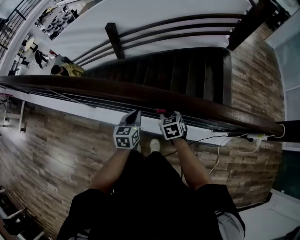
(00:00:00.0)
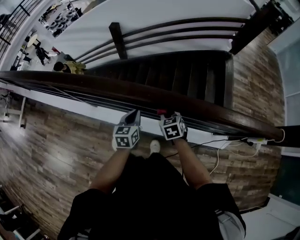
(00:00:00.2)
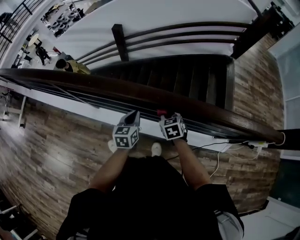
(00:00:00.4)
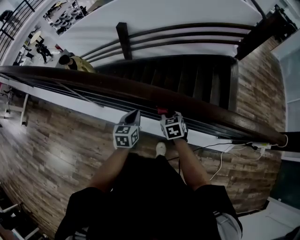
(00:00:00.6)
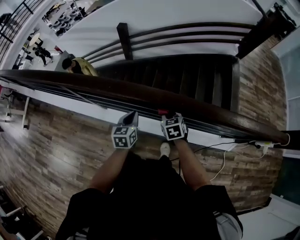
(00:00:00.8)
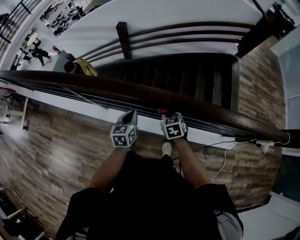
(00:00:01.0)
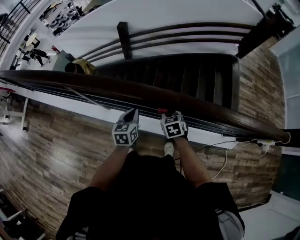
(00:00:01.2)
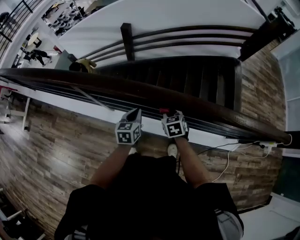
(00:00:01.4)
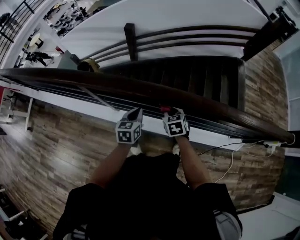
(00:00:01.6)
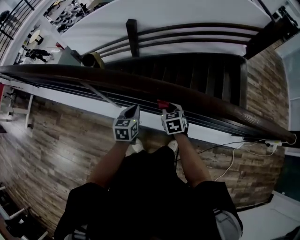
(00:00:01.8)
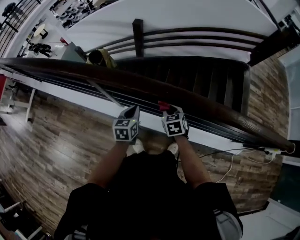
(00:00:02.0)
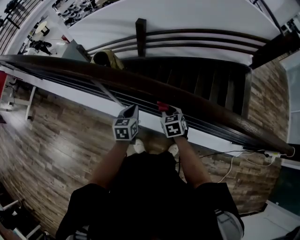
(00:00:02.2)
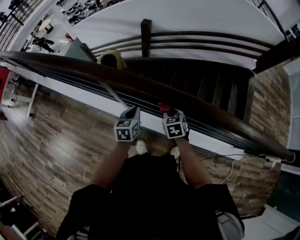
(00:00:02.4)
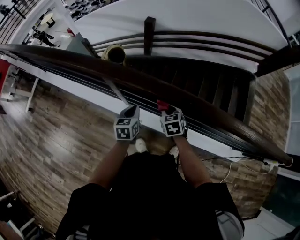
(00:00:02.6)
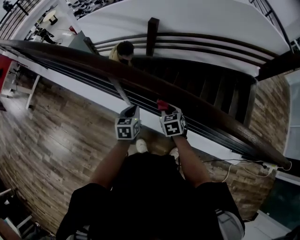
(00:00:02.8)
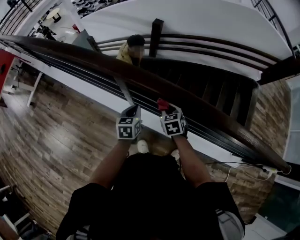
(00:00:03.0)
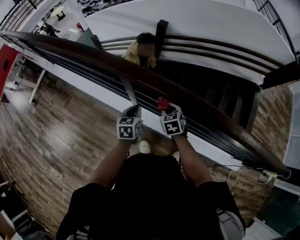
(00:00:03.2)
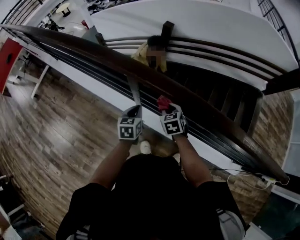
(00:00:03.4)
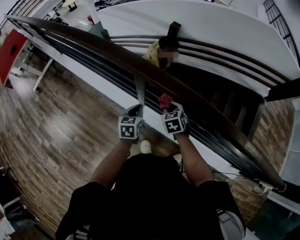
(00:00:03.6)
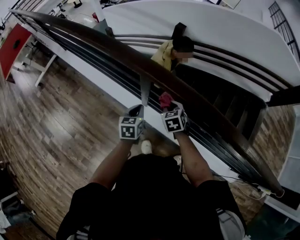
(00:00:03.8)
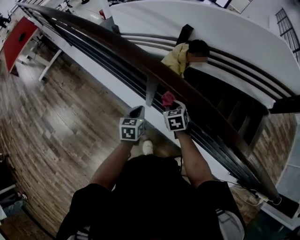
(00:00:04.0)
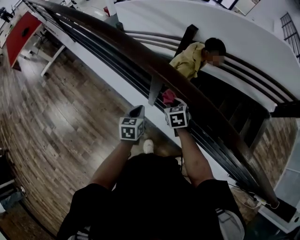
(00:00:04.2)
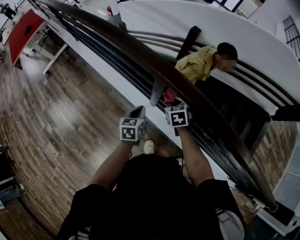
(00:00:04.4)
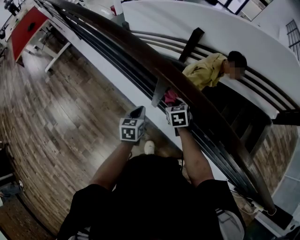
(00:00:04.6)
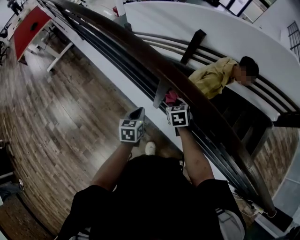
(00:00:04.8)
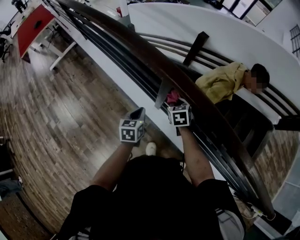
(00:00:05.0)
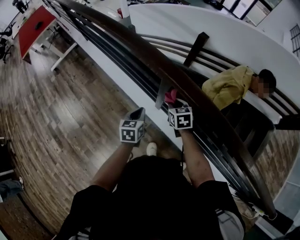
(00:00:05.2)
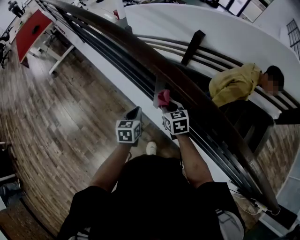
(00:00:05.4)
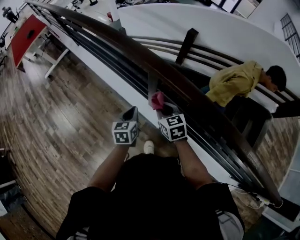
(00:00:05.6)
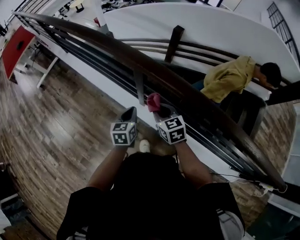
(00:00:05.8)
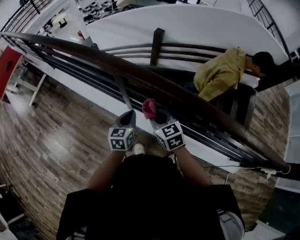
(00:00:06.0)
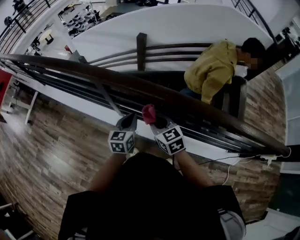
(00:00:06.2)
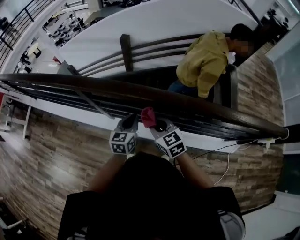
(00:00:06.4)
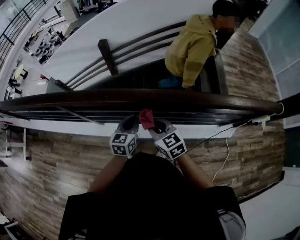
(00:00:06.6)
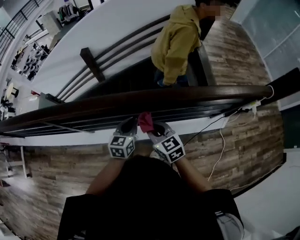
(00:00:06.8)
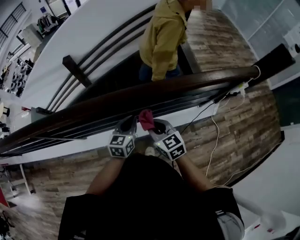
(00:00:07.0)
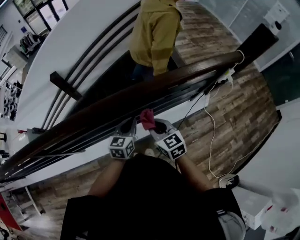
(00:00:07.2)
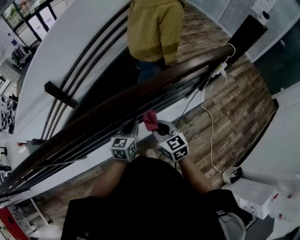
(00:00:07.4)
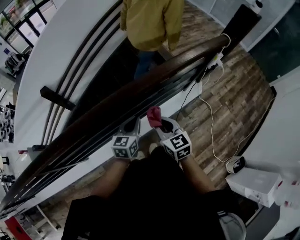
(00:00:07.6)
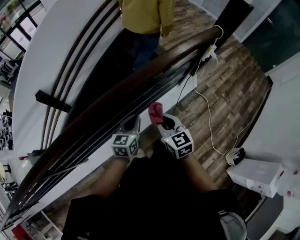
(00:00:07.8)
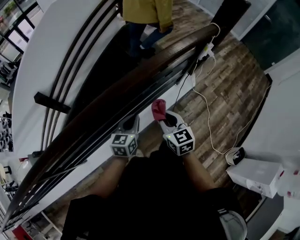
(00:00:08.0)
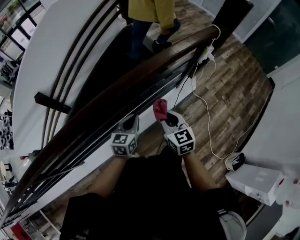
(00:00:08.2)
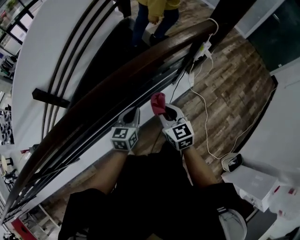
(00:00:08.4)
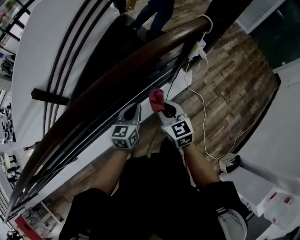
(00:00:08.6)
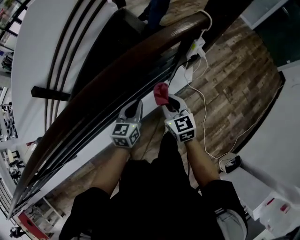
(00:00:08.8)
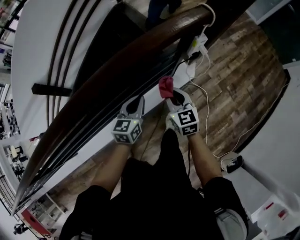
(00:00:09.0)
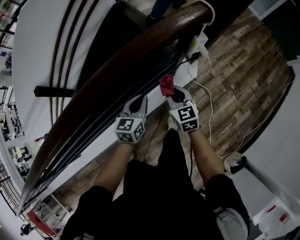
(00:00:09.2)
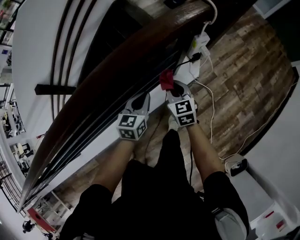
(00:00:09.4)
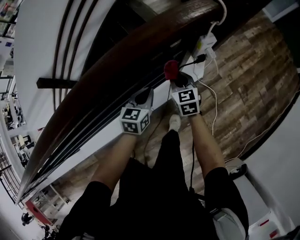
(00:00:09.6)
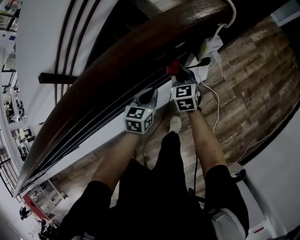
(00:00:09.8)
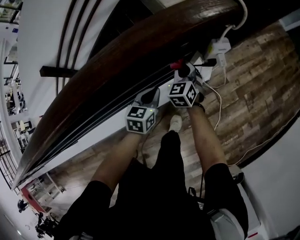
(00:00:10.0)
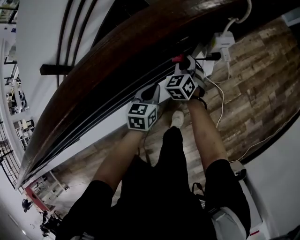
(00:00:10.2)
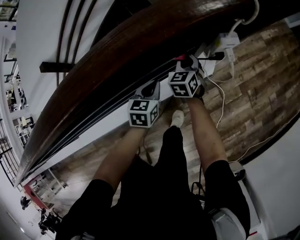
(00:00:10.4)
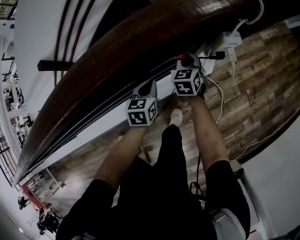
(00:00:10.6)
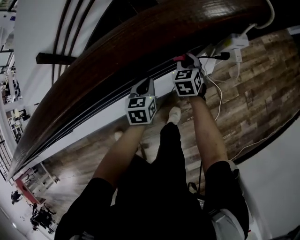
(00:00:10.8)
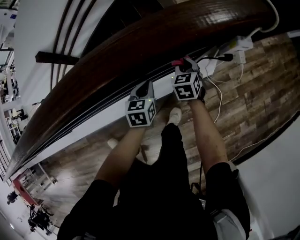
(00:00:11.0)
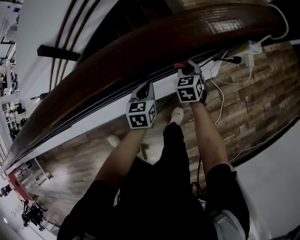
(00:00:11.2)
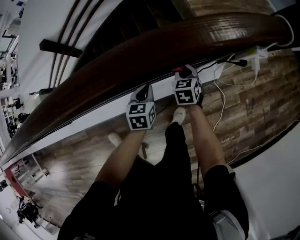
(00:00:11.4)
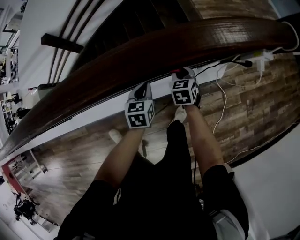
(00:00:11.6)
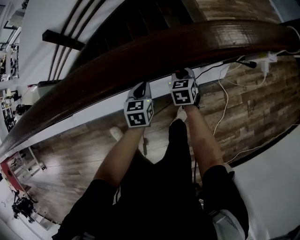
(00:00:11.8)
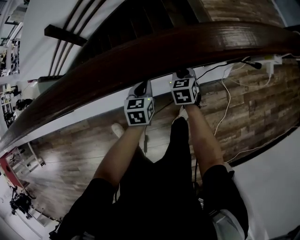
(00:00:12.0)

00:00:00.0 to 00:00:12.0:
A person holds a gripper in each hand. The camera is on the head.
00:00:00.0 to 00:00:01.6: Both grippers travel together to the left, about 20 cm.
00:00:01.6 to 00:00:03.0: Both grippers travel together to the left, roughly 15 cm.
00:00:03.0 to 00:00:04.4: The right gripper is displaced to the left and forward by some 15 cm; the left gripper moves to the left, some 10 cm.
00:00:04.4 to 00:00:06.0: The left gripper moves to the right, upward and backward, about 10 cm; the right gripper shifts roughly 15 cm backward and upward, and turns by approximately 20 degrees.
00:00:06.0 to 00:00:07.6: The two grippers travel together, roughly 50 cm. The right gripper changes its angle by about 60 degrees, while the left gripper changes its angle by about 60 degrees.
00:00:07.6 to 00:00:09.0: Both grippers move to the right and forward, some 30 cm.
00:00:09.0 to 00:00:10.4: The right gripper is displaced forward and downward by approximately 25 cm, and rotates approximately 20 degrees, while the left gripper travels downward and forward by some 15 cm.
00:00:10.4 to 00:00:12.0: Both grippers move to the left and backward, about 25 cm. The left gripper swivels some 20 degrees. Meanwhile the right gripper rotates about 20 degrees.

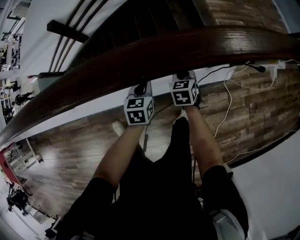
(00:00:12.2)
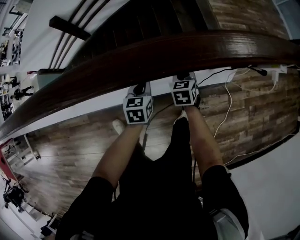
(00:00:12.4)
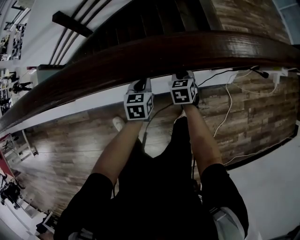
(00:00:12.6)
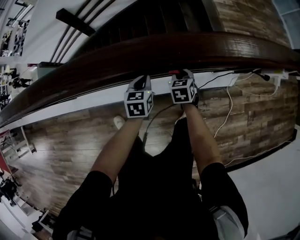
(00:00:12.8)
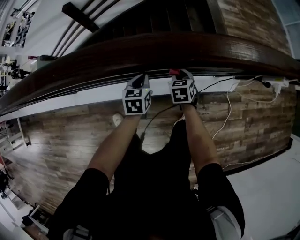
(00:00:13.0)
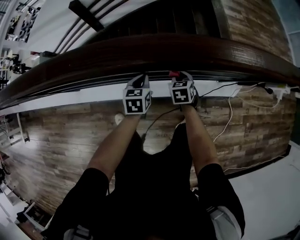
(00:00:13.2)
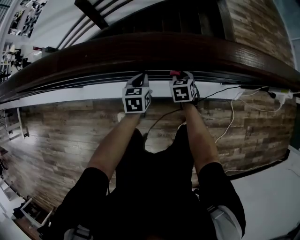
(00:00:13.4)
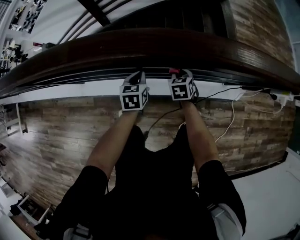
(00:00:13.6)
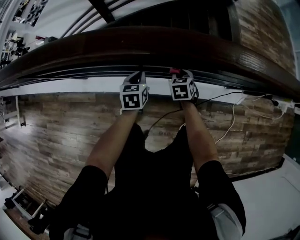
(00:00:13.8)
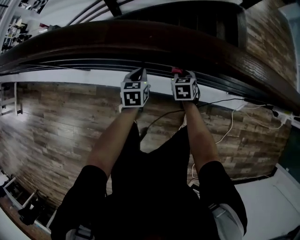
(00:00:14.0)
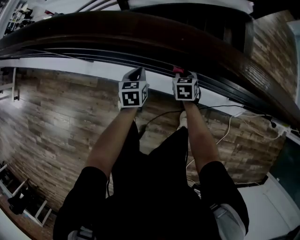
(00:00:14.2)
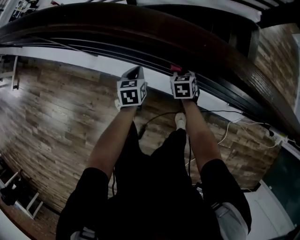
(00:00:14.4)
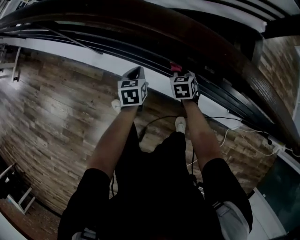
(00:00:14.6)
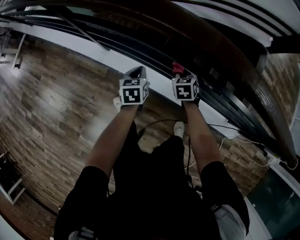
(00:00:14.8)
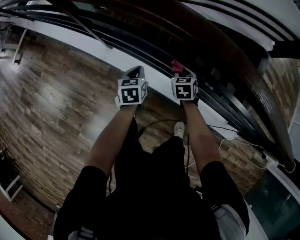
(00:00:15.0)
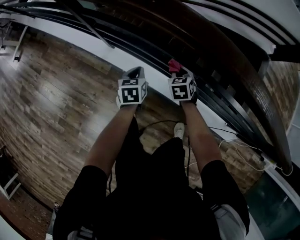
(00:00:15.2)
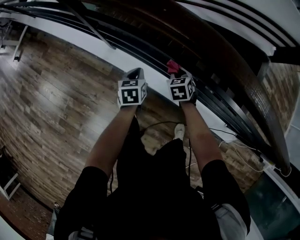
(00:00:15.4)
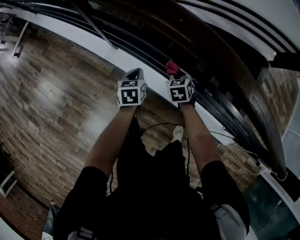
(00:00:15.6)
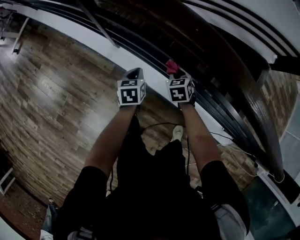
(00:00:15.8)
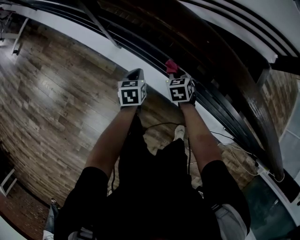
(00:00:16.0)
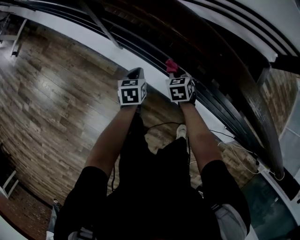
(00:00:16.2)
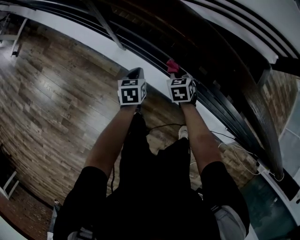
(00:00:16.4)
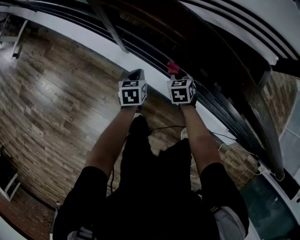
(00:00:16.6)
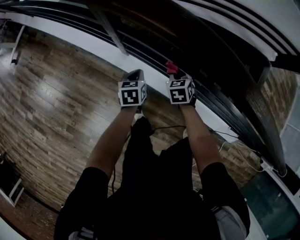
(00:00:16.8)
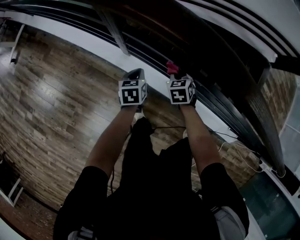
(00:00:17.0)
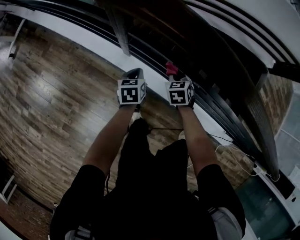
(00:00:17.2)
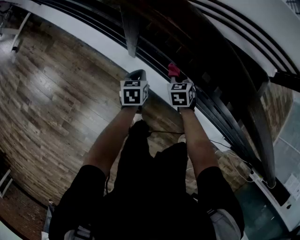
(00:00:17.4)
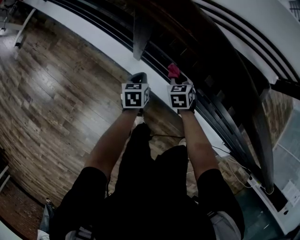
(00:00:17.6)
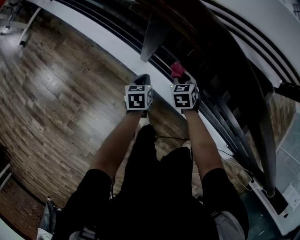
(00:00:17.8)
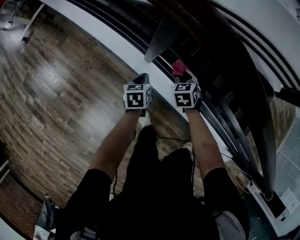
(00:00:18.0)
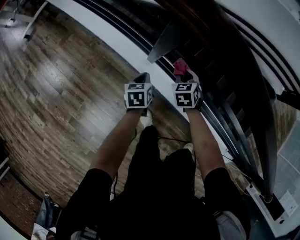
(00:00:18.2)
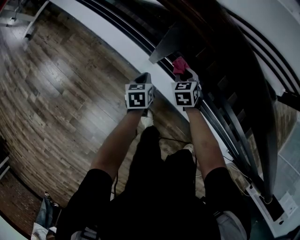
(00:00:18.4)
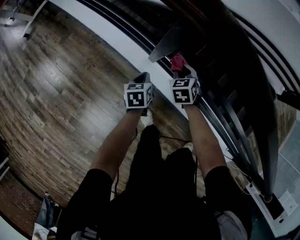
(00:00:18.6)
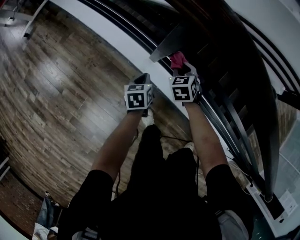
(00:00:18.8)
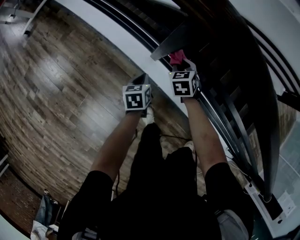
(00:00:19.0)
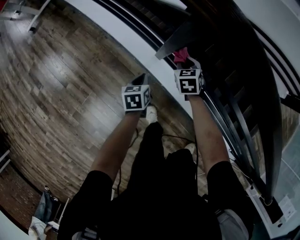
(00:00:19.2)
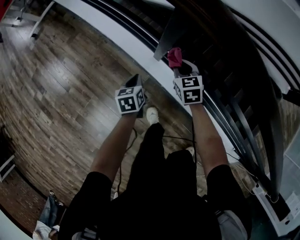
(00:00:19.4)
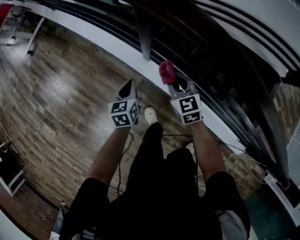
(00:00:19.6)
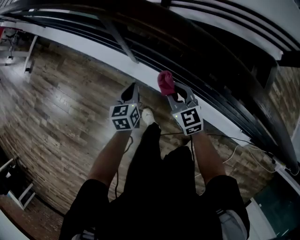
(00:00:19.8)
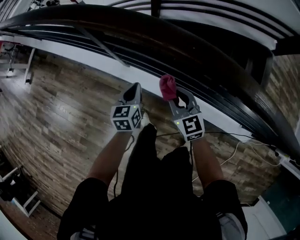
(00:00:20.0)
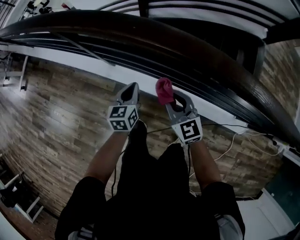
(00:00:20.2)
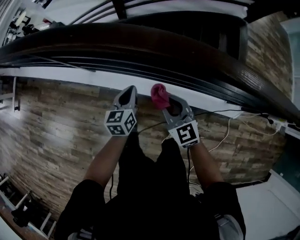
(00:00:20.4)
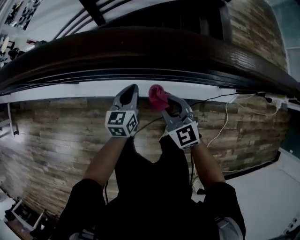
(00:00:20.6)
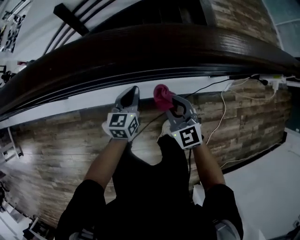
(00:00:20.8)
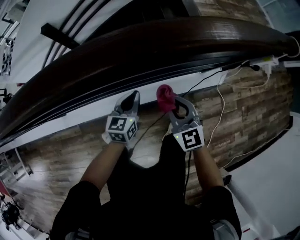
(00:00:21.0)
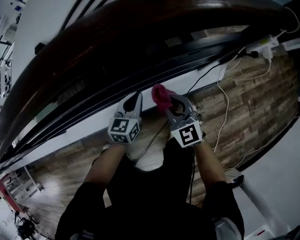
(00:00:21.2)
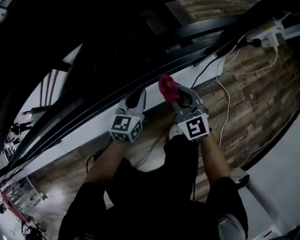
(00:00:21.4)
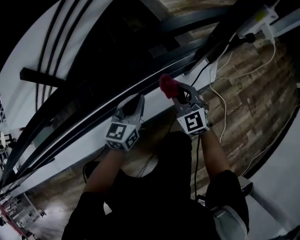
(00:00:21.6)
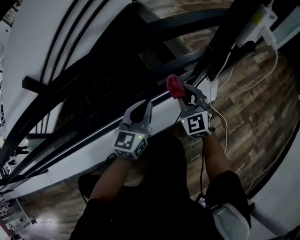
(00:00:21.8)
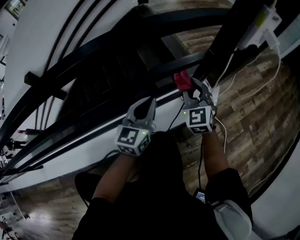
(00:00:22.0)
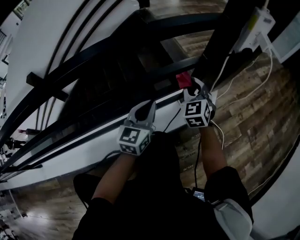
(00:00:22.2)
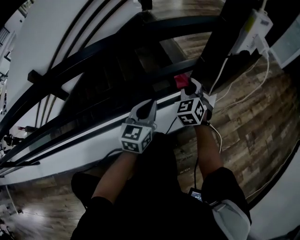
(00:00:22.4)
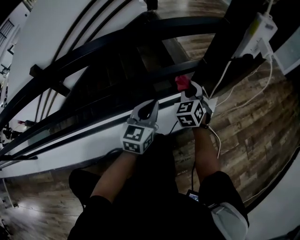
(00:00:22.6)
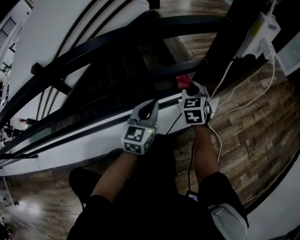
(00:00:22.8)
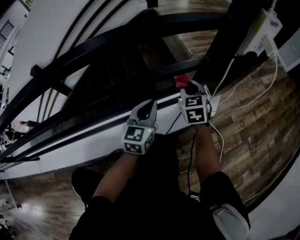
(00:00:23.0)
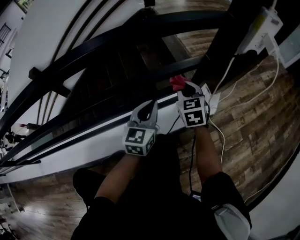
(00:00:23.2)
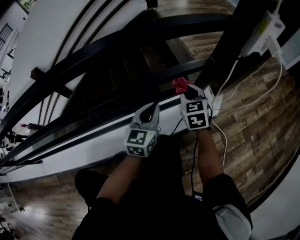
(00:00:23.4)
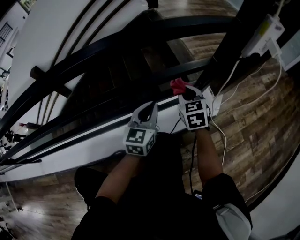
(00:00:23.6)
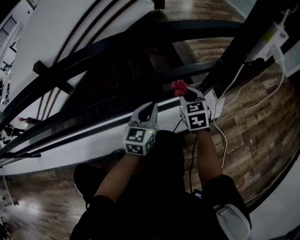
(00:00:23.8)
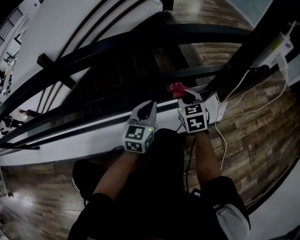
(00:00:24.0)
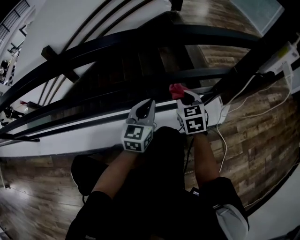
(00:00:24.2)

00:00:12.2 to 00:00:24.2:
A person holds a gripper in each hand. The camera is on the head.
00:00:12.2 to 00:00:13.8: The two grippers go approximately 20 cm to the left.
00:00:13.8 to 00:00:15.2: The grippers both shift to the left by approximately 20 cm. The right gripper changes its angle by roughly 30 degrees. The left gripper swivels some 30 degrees.
00:00:15.2 to 00:00:16.6: Both grippers travel together to the left, roughly 10 cm.
00:00:16.6 to 00:00:18.2: The right gripper shifts some 15 cm to the left and forward. Meanwhile the left gripper is displaced to the left by about 10 cm.
00:00:18.2 to 00:00:19.8: The left gripper heads upward and backward, covering some 10 cm; the right gripper moves backward and upward, approximately 20 cm, and rotates roughly 30 degrees.
00:00:19.8 to 00:00:21.2: The two grippers travel together, roughly 60 cm. The left gripper changes its angle by some 60 degrees, while the right gripper swivels approximately 50 degrees.
00:00:21.2 to 00:00:22.6: The left gripper shifts approximately 25 cm to the right, forward and downward. The right gripper goes some 40 cm forward, to the right and downward, and swivels roughly 40 degrees.
00:00:22.6 to 00:00:24.2: The right gripper moves to the left and backward, roughly 15 cm, and rotates approximately 30 degrees; the left gripper heads to the left, covering some 10 cm.
